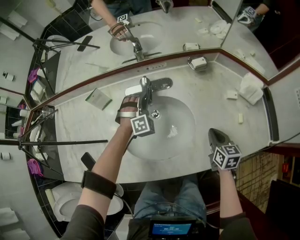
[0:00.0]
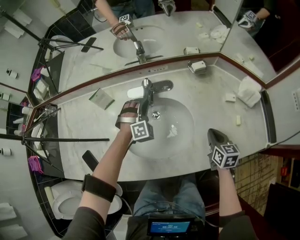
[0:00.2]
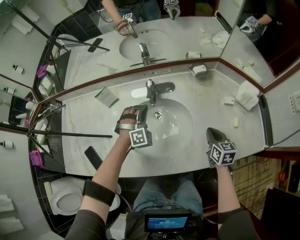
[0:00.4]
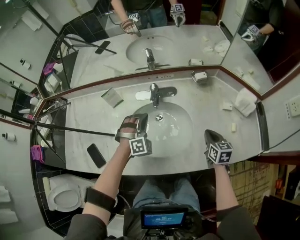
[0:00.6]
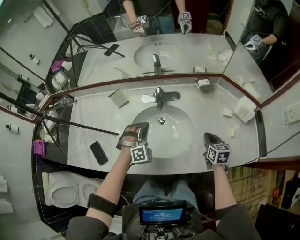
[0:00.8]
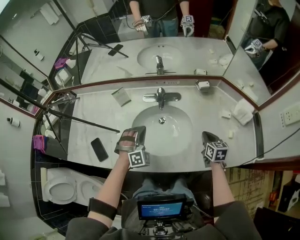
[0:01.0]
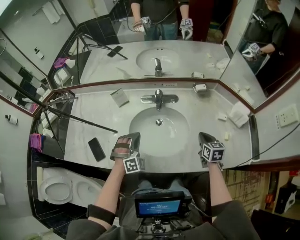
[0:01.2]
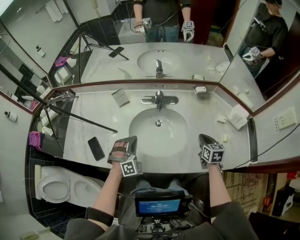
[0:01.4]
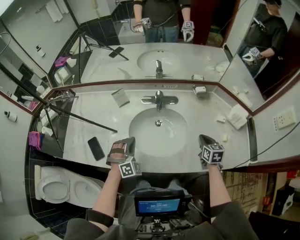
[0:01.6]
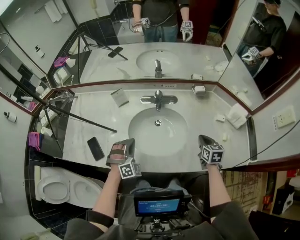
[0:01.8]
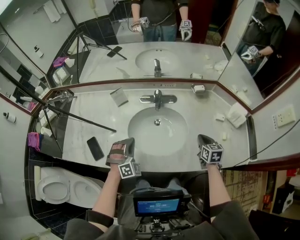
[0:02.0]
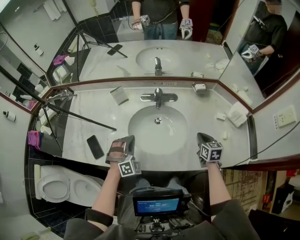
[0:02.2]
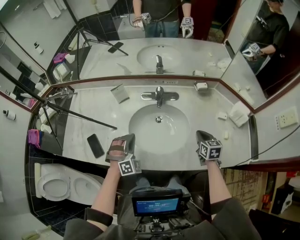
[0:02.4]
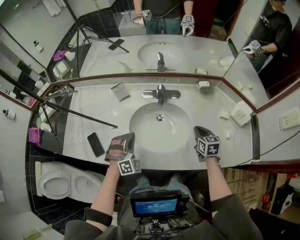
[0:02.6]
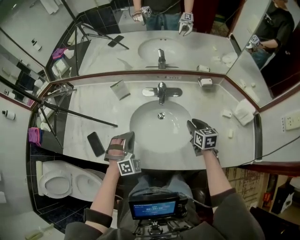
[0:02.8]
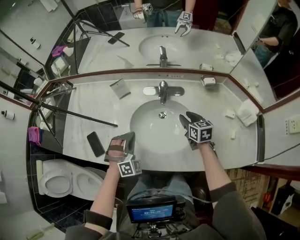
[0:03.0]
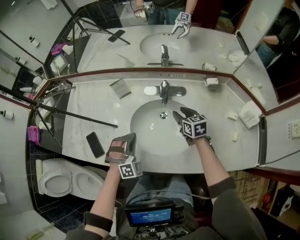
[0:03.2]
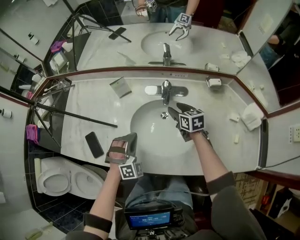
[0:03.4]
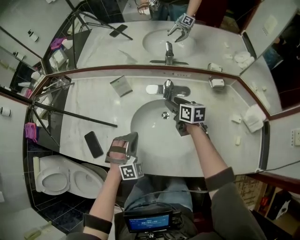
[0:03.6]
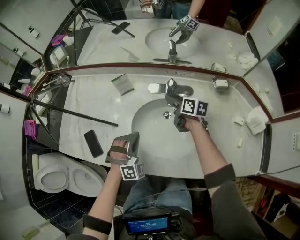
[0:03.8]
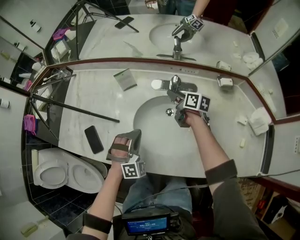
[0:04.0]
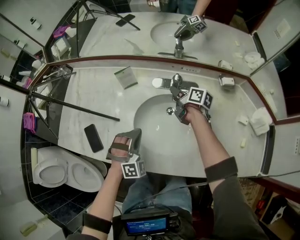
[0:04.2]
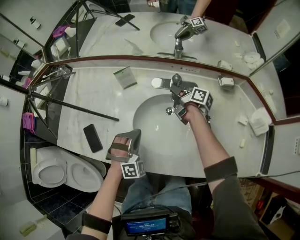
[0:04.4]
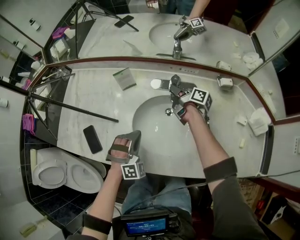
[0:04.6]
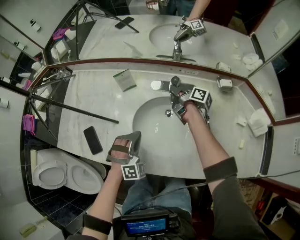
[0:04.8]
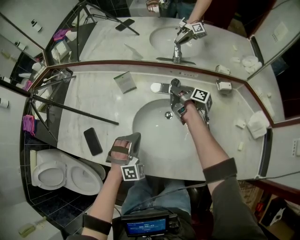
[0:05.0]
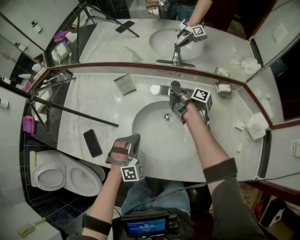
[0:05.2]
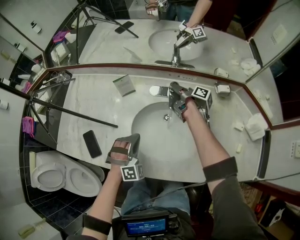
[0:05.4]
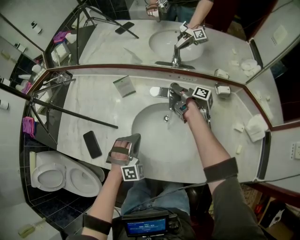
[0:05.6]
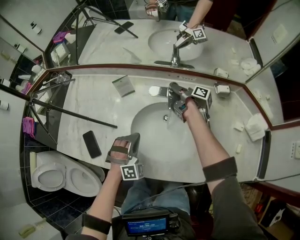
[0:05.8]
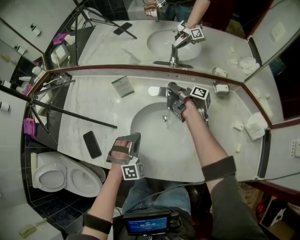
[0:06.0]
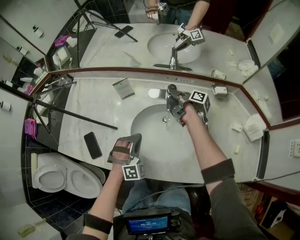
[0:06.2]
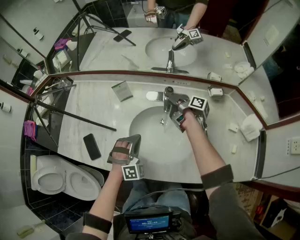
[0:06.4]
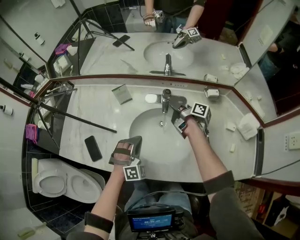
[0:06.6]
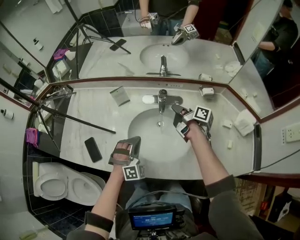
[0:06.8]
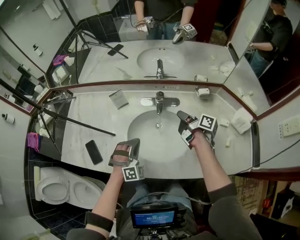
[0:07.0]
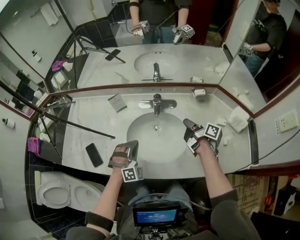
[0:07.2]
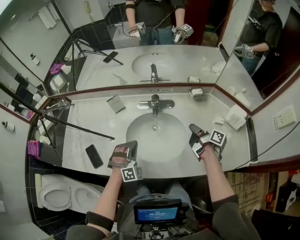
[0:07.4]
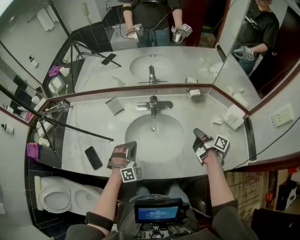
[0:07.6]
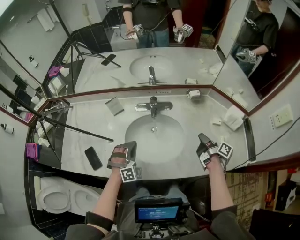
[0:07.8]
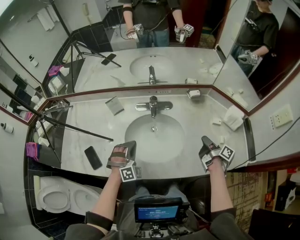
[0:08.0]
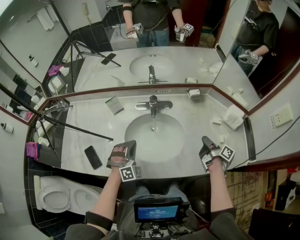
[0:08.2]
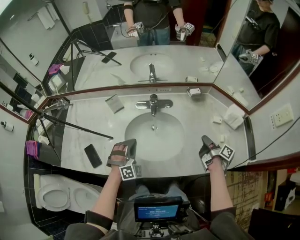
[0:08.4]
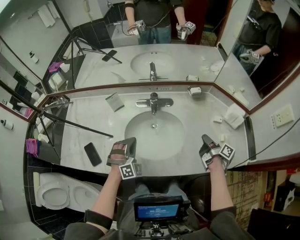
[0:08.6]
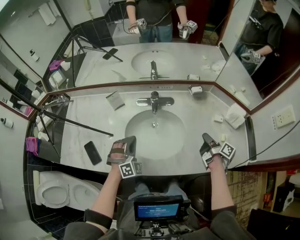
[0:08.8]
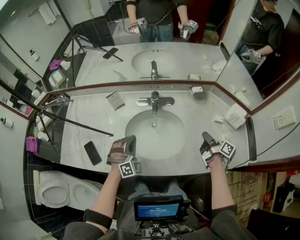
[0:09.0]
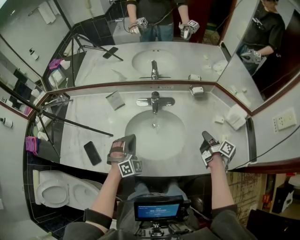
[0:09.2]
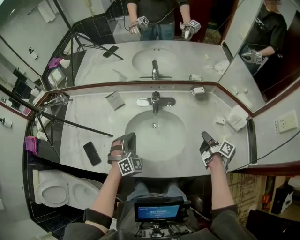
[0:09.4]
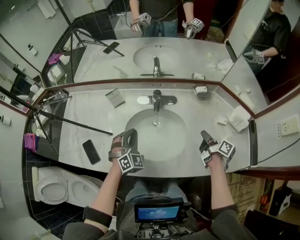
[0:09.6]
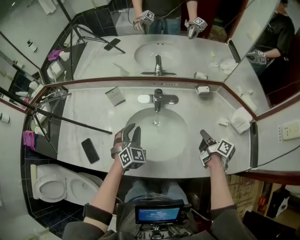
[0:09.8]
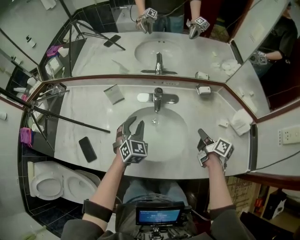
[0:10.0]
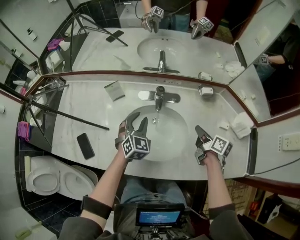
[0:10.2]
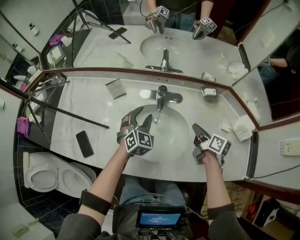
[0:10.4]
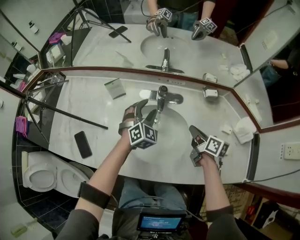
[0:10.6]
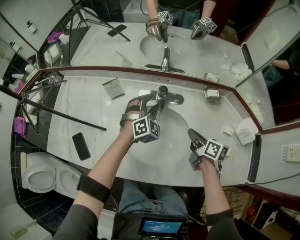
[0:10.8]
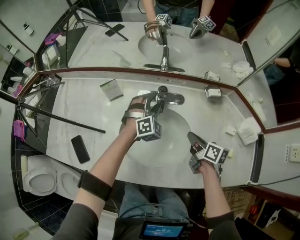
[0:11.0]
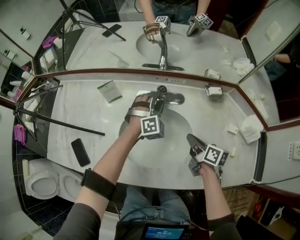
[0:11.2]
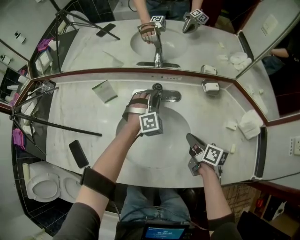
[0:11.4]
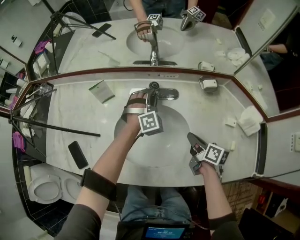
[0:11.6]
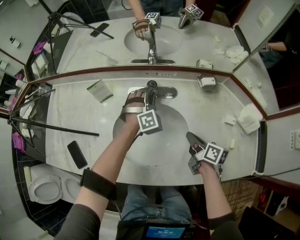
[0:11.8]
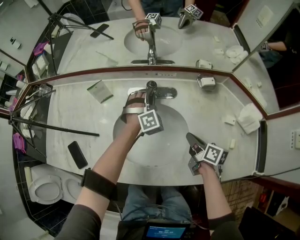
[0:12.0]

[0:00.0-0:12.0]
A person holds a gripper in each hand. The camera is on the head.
0:00.0 to 0:01.6: The left gripper travels backward, to the left and upward by some 30 cm, while the right gripper travels upward by some 5 cm.
0:01.6 to 0:03.0: The right gripper heads forward and to the left, covering approximately 15 cm, and opens up.
0:03.0 to 0:04.4: The right gripper travels forward by some 15 cm, and twists about 50 degrees clockwise, seen from behind.
0:04.4 to 0:06.0: The grippers move only a little.
0:06.0 to 0:07.6: The left gripper changes place by some 5 cm, while the right gripper heads backward and to the right, covering some 30 cm, turns by roughly 20 degrees, and closes up.
0:07.6 to 0:09.0: The right gripper shifts by approximately 5 cm.
0:09.0 to 0:10.4: The left gripper moves forward and to the right, approximately 15 cm, swivels some 30 degrees, and opens. The right gripper moves forward and to the left, roughly 15 cm, and changes its angle by roughly 30 degrees.
0:10.4 to 0:12.0: The left gripper moves to the right, forward and downward, about 15 cm, turns by approximately 40 degrees, and closes up, while the right gripper goes approximately 5 cm downward.

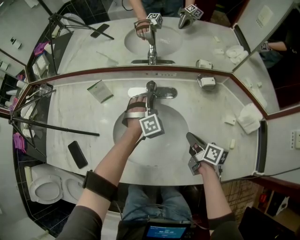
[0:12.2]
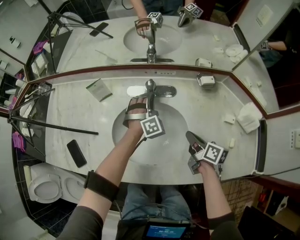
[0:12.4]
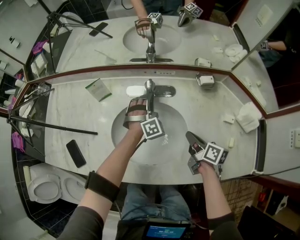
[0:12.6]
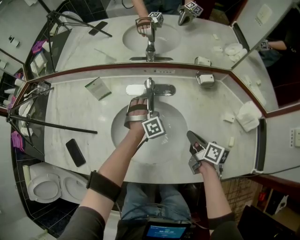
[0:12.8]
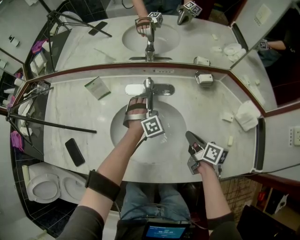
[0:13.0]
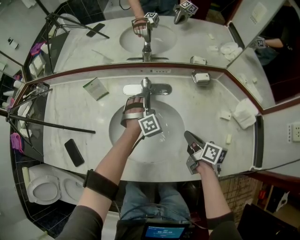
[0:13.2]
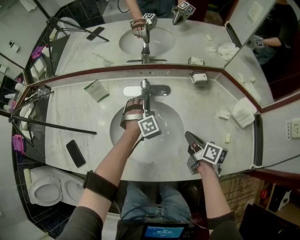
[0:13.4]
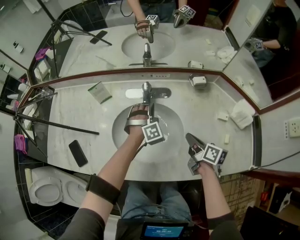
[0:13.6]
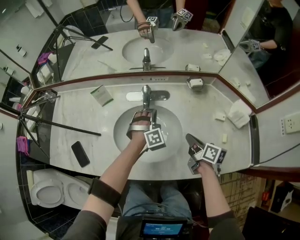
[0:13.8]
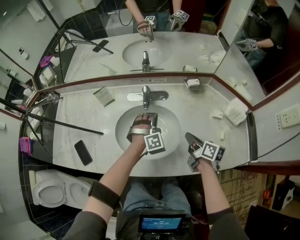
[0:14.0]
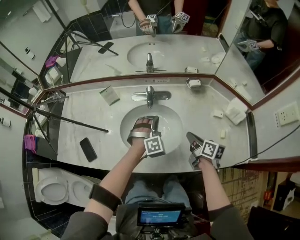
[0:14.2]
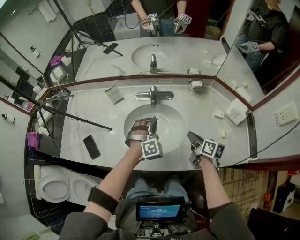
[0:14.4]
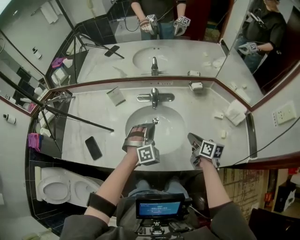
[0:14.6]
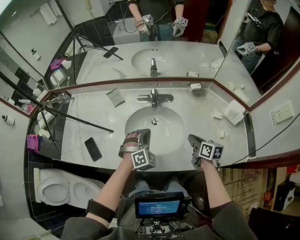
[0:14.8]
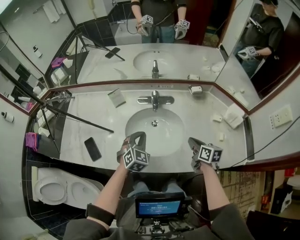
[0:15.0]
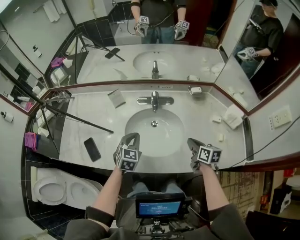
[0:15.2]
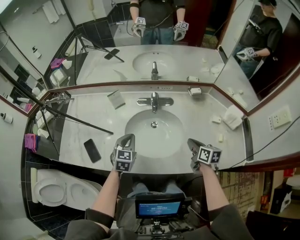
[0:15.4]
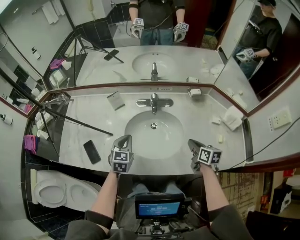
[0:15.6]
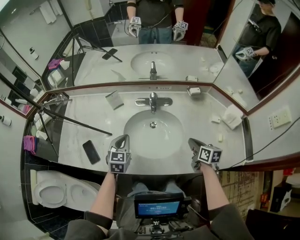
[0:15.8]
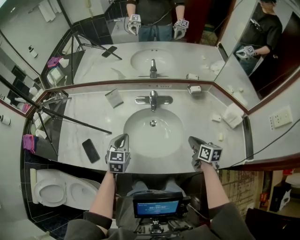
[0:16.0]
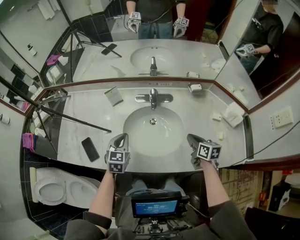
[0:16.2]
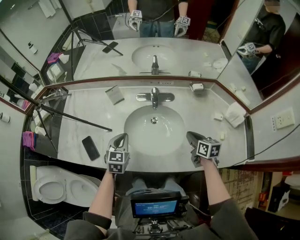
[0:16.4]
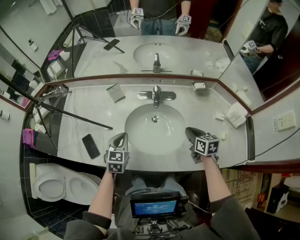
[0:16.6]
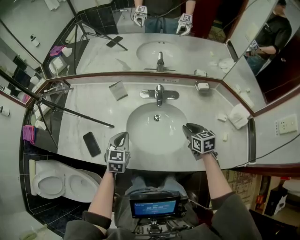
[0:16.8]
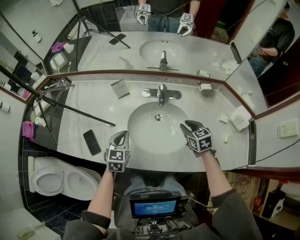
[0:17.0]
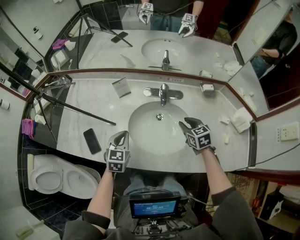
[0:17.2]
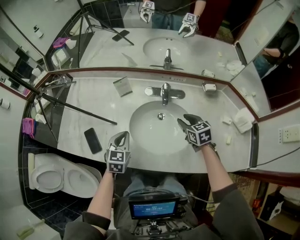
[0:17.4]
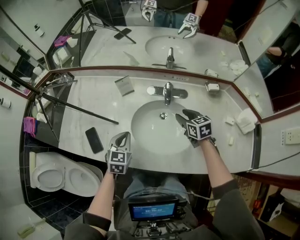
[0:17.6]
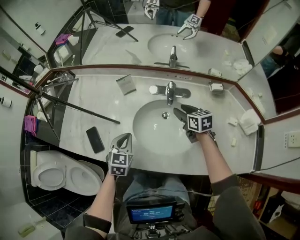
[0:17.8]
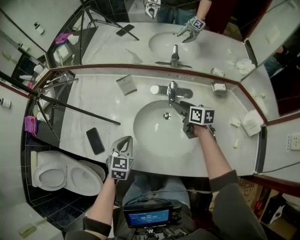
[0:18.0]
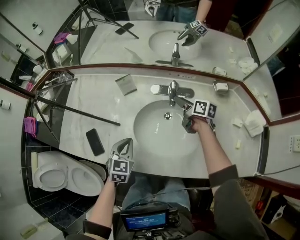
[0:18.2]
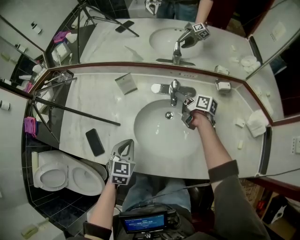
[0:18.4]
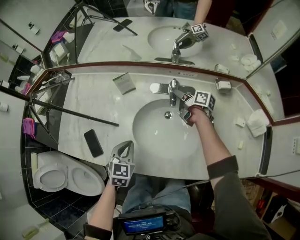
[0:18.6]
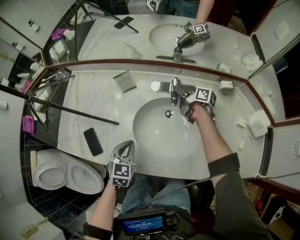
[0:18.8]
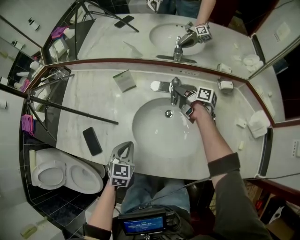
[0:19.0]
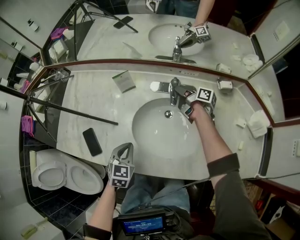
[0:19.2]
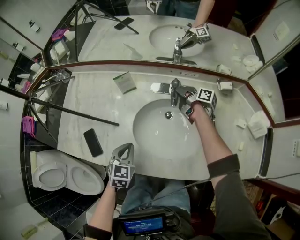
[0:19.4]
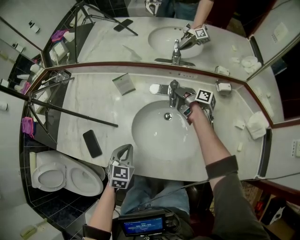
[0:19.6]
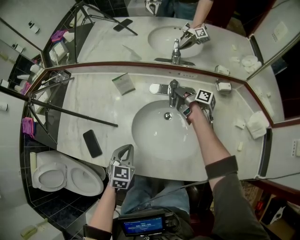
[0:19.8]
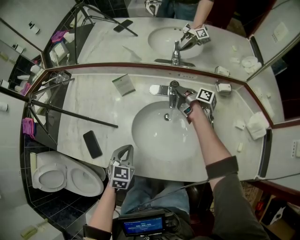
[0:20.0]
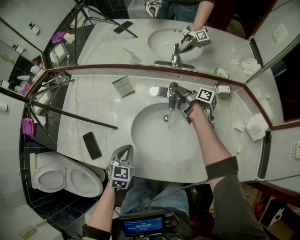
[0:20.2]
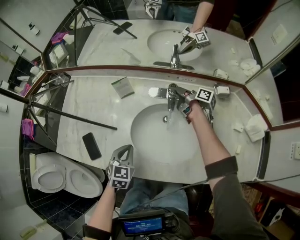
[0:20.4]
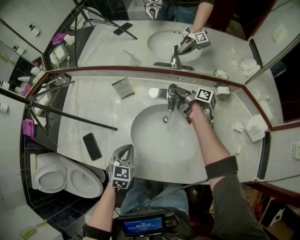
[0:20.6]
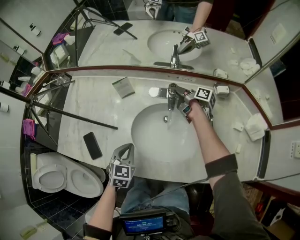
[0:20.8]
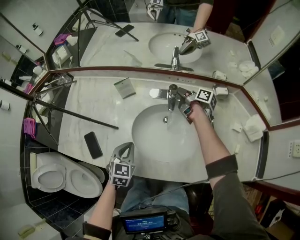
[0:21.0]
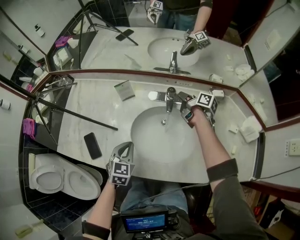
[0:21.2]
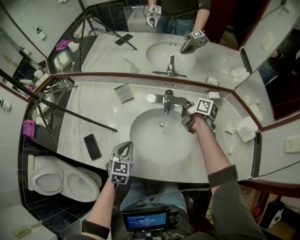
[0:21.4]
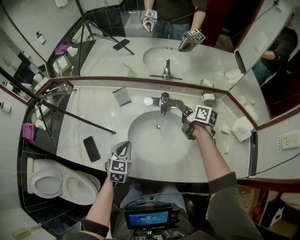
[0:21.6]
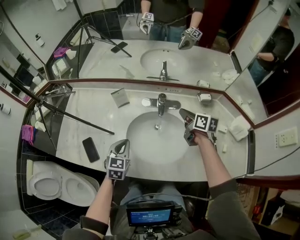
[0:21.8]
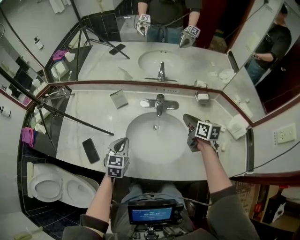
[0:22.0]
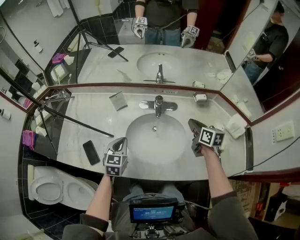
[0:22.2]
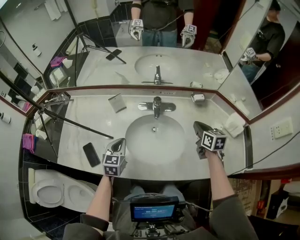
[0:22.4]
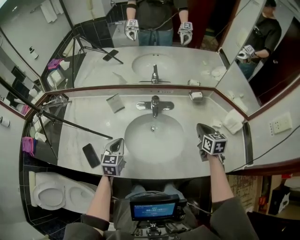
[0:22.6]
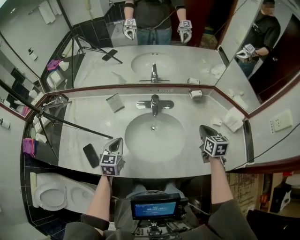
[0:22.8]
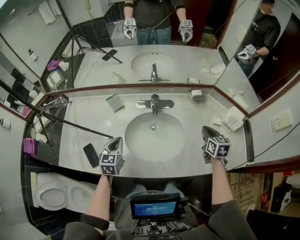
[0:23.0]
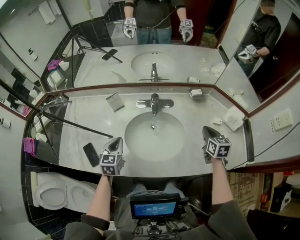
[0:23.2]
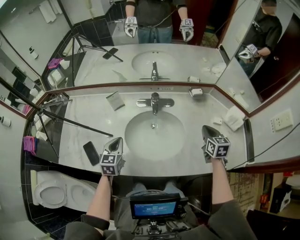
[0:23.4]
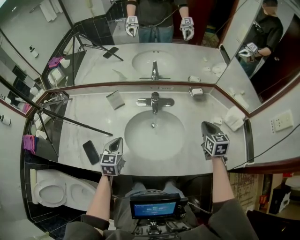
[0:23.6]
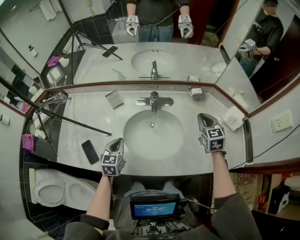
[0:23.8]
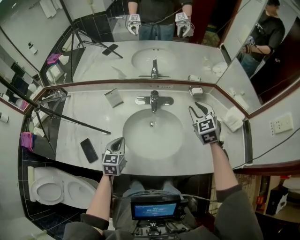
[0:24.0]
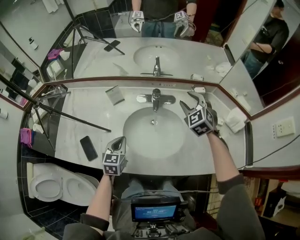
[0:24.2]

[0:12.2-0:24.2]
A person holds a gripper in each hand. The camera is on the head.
0:12.2 to 0:13.8: The left gripper is displaced backward by approximately 10 cm; the right gripper shifts by roughly 5 cm.
0:13.8 to 0:15.2: The right gripper ends up some 5 cm from where it was, and changes its angle by some 20 degrees; the left gripper is displaced to the left, backward and upward by approximately 25 cm, and rolls counterclockwise, seen from behind, by some 60 degrees.
0:15.2 to 0:16.6: The right gripper travels forward by approximately 5 cm; the left gripper goes roughly 5 cm to the left.
0:16.6 to 0:18.2: The right gripper travels forward by about 20 cm, turns by about 20 degrees, and opens its fingers.
0:18.2 to 0:19.8: The right gripper travels forward by approximately 5 cm, turns by roughly 40 degrees, and closes its fingers.
0:19.8 to 0:21.2: The right gripper changes place by about 5 cm.
0:21.2 to 0:22.6: The right gripper goes some 25 cm backward, to the right and upward, and rolls counterclockwise, seen from behind, by some 50 degrees. The left gripper shifts by approximately 5 cm.
0:22.6 to 0:24.2: The right gripper goes some 15 cm forward, to the left and upward, rotates around the line of its fingers by some 50 degrees, counterclockwise from behind, and opens its fingers.
